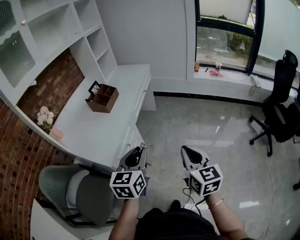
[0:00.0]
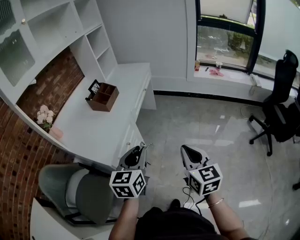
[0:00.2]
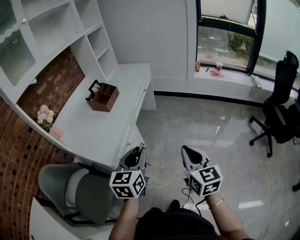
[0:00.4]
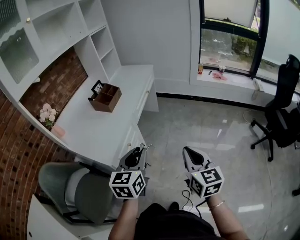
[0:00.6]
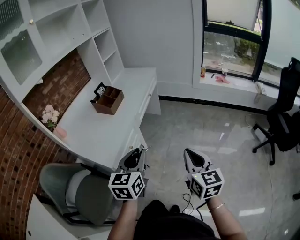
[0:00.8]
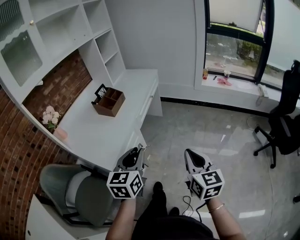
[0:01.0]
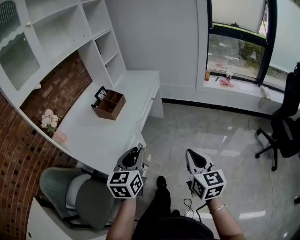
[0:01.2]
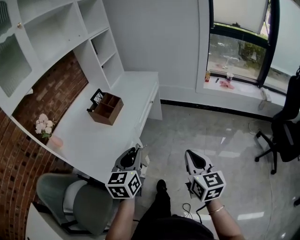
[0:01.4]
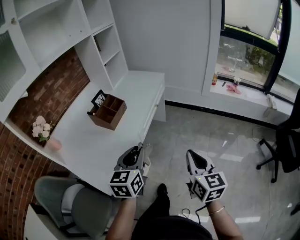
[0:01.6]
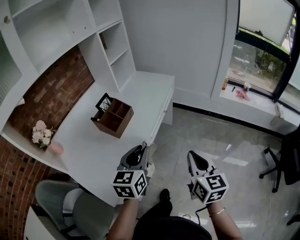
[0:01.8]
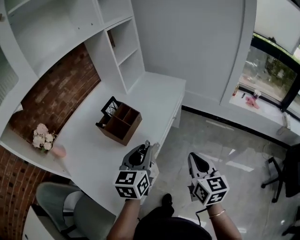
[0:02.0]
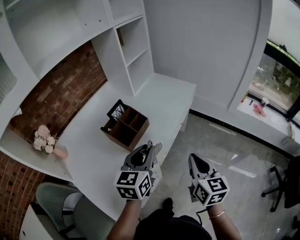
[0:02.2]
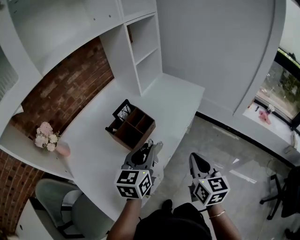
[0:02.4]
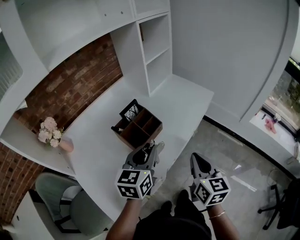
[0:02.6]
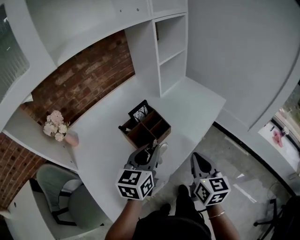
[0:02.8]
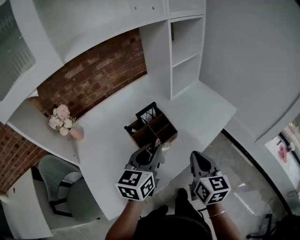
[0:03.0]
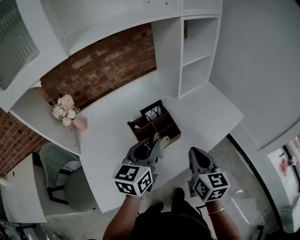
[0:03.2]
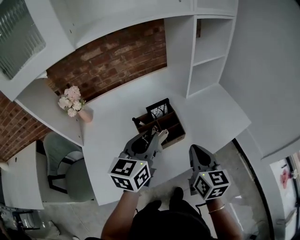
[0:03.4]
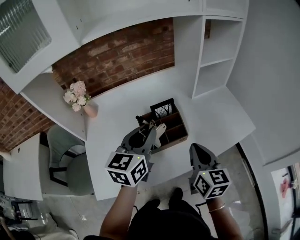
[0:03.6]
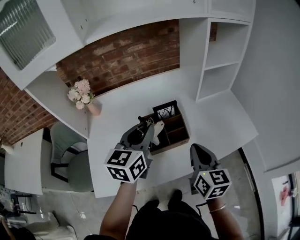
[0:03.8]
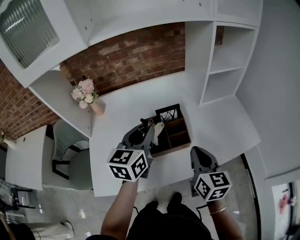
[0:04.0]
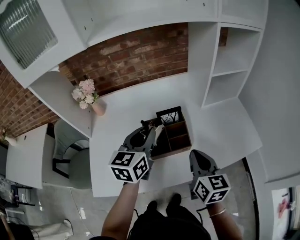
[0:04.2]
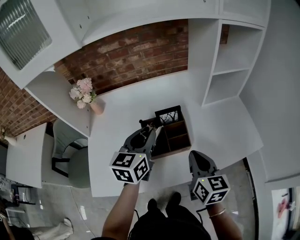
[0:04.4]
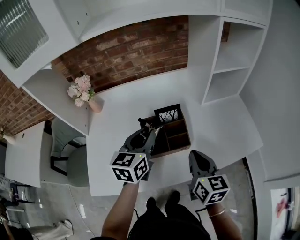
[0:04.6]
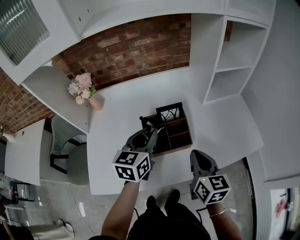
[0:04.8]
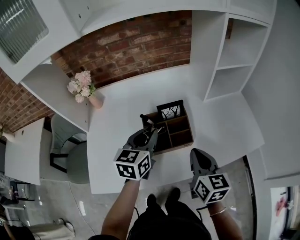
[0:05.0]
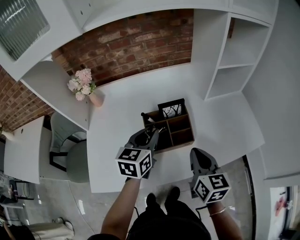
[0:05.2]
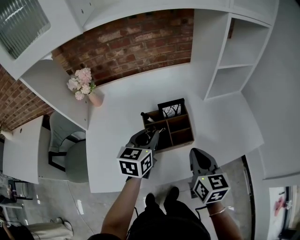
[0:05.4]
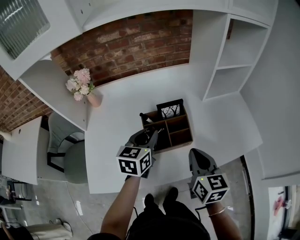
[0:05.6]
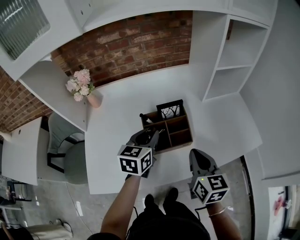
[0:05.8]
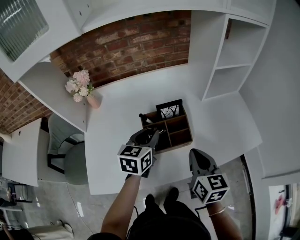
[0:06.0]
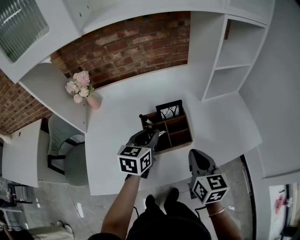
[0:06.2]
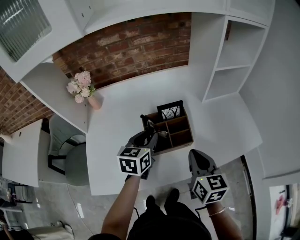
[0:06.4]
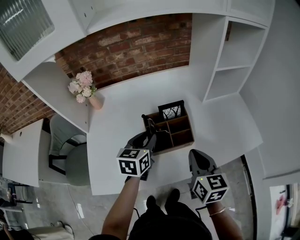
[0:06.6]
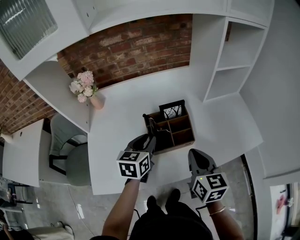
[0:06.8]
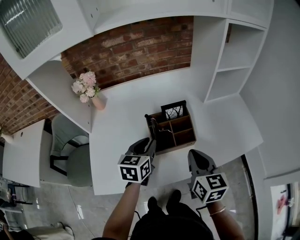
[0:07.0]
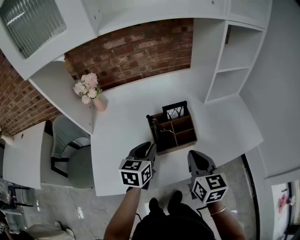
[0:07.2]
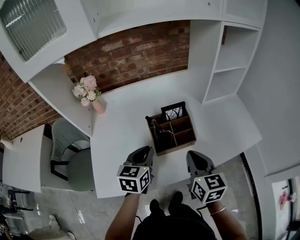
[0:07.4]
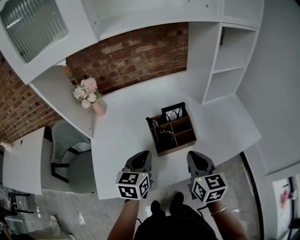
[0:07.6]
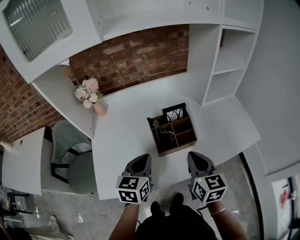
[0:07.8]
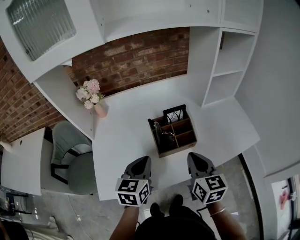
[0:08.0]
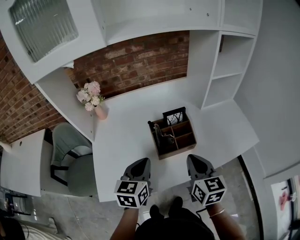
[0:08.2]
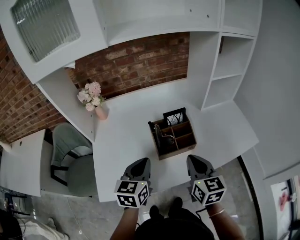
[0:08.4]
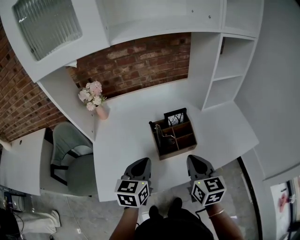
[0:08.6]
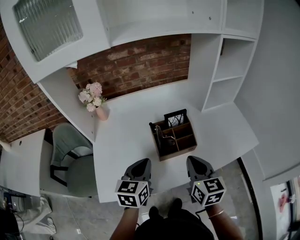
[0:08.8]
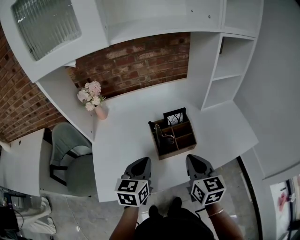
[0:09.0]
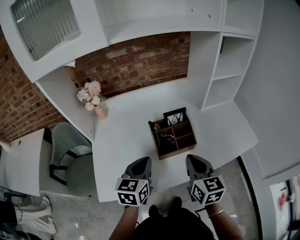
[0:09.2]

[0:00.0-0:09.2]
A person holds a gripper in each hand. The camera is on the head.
0:00.0 to 0:01.6: The two grippers go about 20 cm forward.
0:01.6 to 0:03.0: The left gripper moves roughly 30 cm, and changes its angle by about 20 degrees. Meanwhile the right gripper moves roughly 40 cm, and swivels approximately 30 degrees.
0:03.0 to 0:04.6: The left gripper ends up roughly 10 cm from where it was, and turns by approximately 30 degrees. Meanwhile the right gripper shifts by about 10 cm, and changes its angle by roughly 30 degrees.
0:04.6 to 0:06.2: The left gripper goes roughly 5 cm downward.
0:06.2 to 0:07.6: The left gripper is displaced backward and to the left by approximately 10 cm.
0:07.6 to 0:09.2: The grippers stay close to where they were, moving slightly.

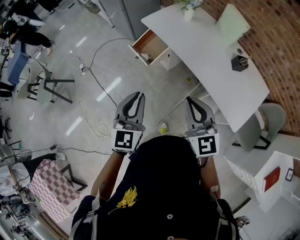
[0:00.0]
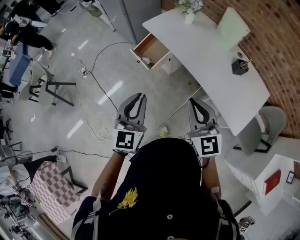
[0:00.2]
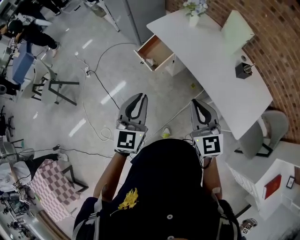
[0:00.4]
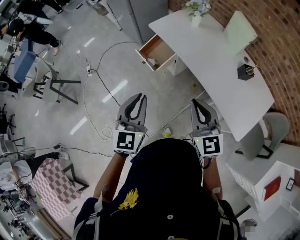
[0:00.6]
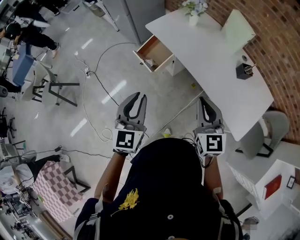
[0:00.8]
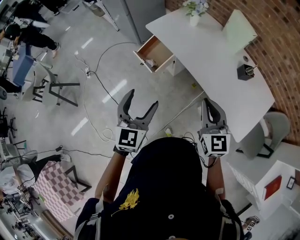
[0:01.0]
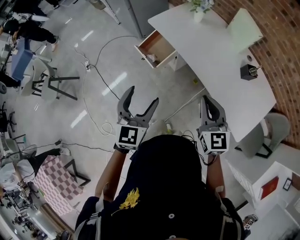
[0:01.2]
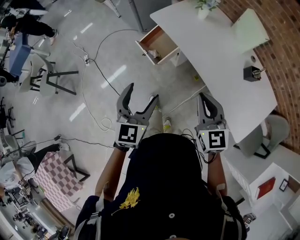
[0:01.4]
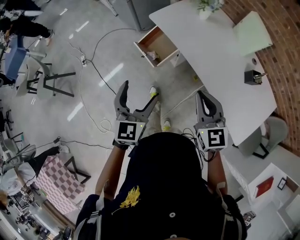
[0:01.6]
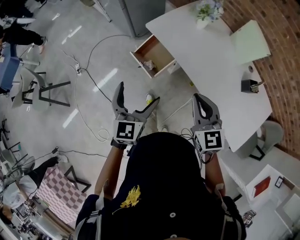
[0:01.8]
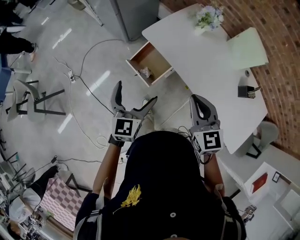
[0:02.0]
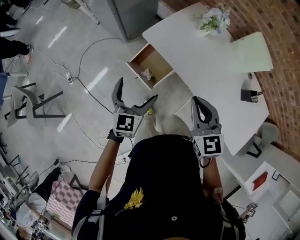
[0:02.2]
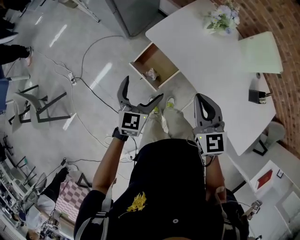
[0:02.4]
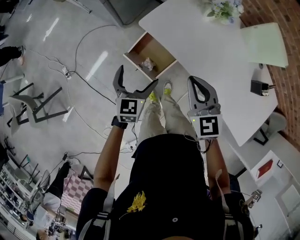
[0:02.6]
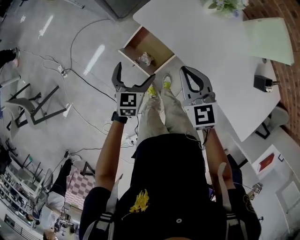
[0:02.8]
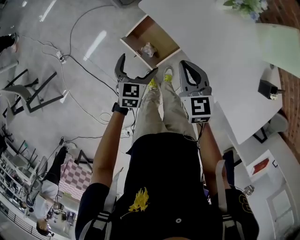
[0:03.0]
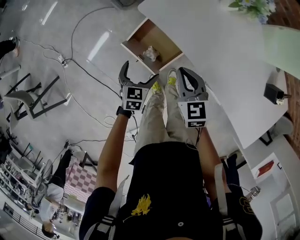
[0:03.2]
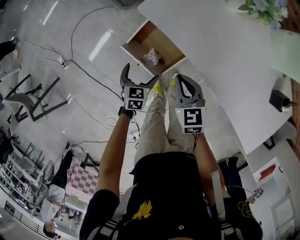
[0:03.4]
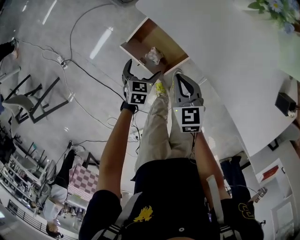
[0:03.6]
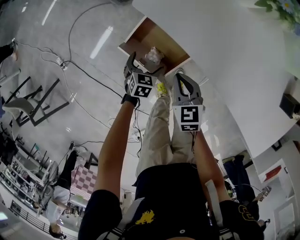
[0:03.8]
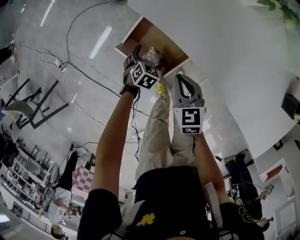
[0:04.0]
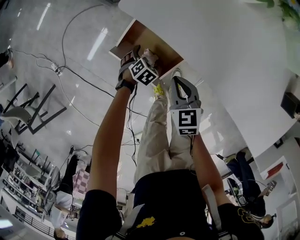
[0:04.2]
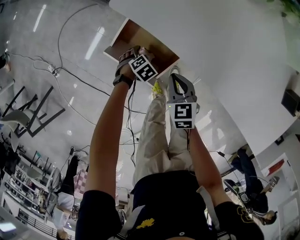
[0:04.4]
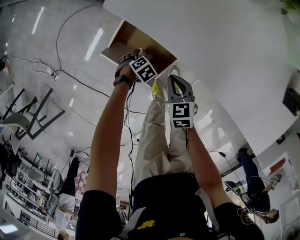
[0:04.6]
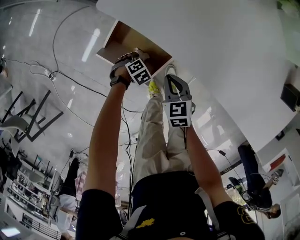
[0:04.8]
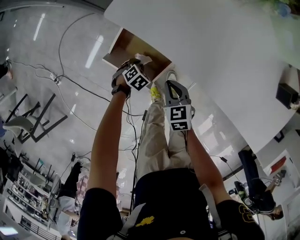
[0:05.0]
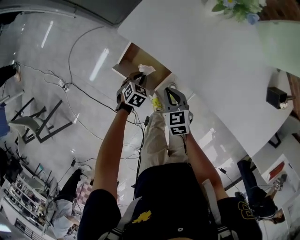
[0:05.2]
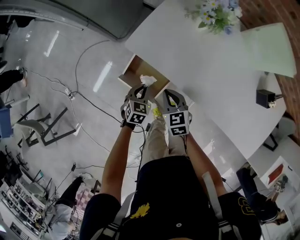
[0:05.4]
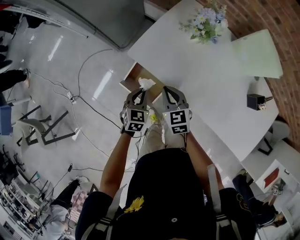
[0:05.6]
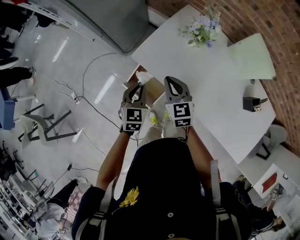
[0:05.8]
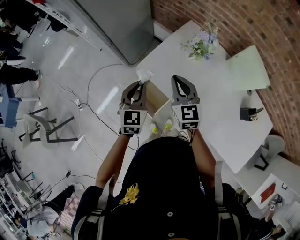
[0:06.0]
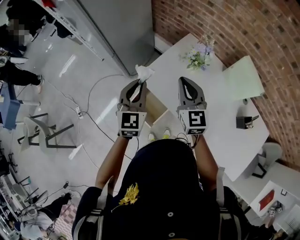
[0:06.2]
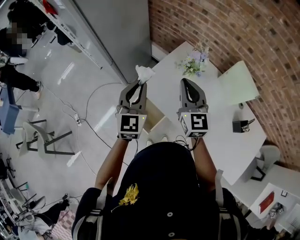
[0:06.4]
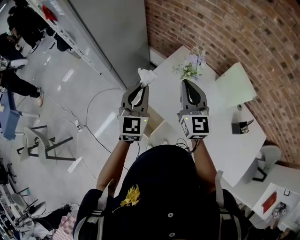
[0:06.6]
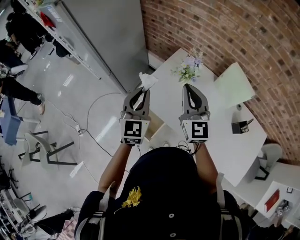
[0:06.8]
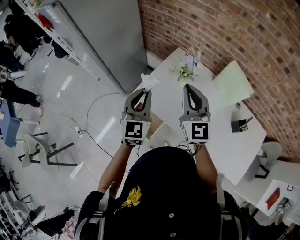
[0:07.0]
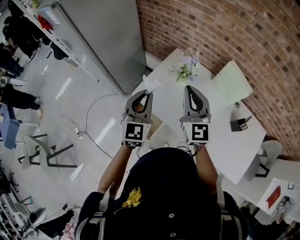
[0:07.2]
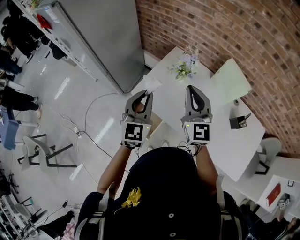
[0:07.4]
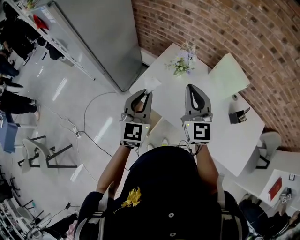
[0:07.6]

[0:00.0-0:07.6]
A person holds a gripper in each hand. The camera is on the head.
0:00.0 to 0:01.6: The grippers both shift forward by approximately 15 cm. The left gripper opens.
0:01.6 to 0:03.0: Both grippers move forward and downward, approximately 40 cm. The left gripper changes its angle by roughly 30 degrees.
0:03.0 to 0:04.6: Both grippers travel together downward, about 35 cm. The right gripper swivels some 20 degrees. Meanwhile the left gripper tilts its fingers about 40 degrees downward.
0:04.6 to 0:06.0: Both grippers move upward, roughly 60 cm. The left gripper angles its fingers upward, by about 60 degrees, and closes. The right gripper tilts its fingers some 40 degrees upward.
0:06.0 to 0:07.6: The grippers both shift upward and to the right by about 15 cm. The right gripper changes its angle by roughly 20 degrees.

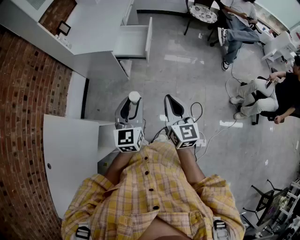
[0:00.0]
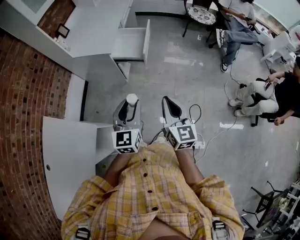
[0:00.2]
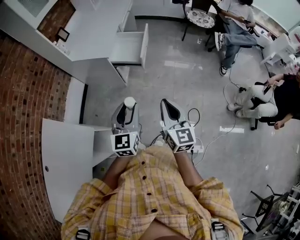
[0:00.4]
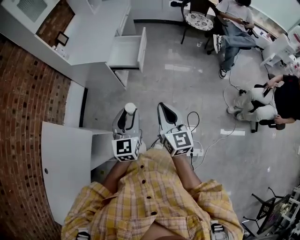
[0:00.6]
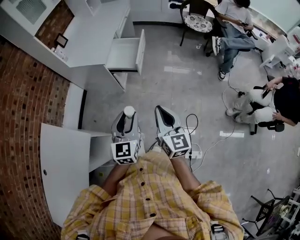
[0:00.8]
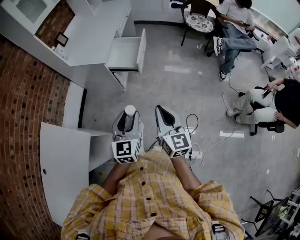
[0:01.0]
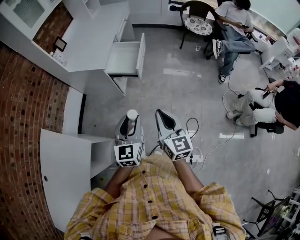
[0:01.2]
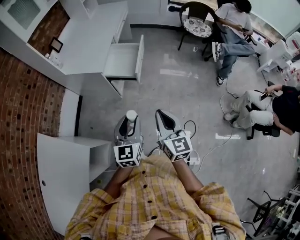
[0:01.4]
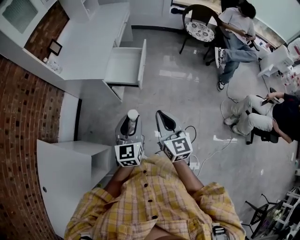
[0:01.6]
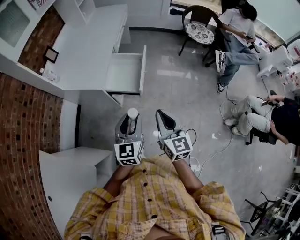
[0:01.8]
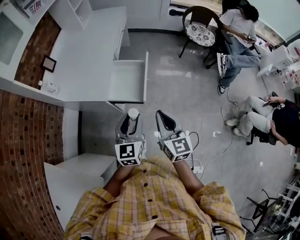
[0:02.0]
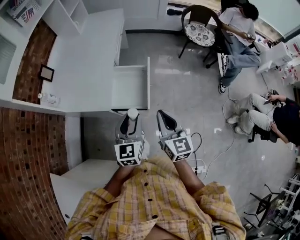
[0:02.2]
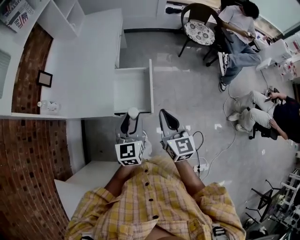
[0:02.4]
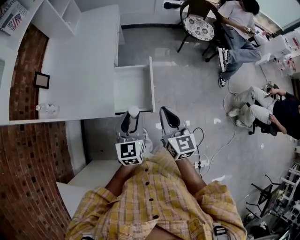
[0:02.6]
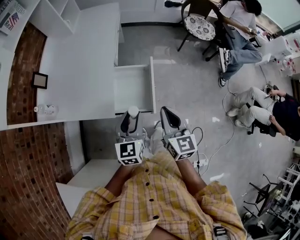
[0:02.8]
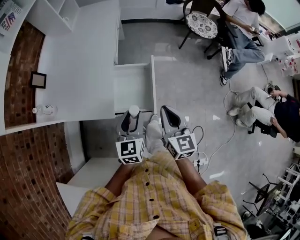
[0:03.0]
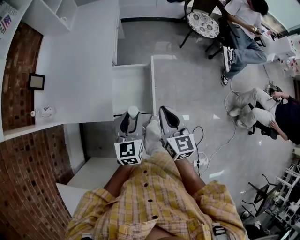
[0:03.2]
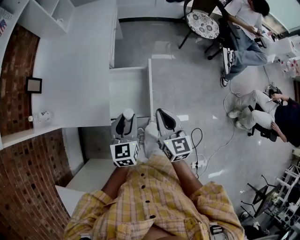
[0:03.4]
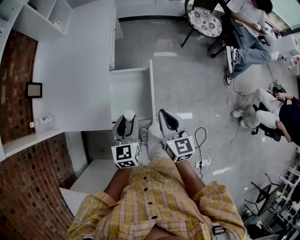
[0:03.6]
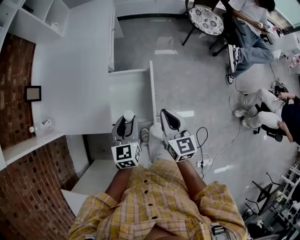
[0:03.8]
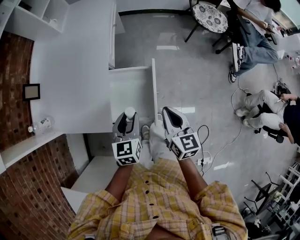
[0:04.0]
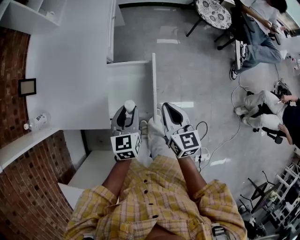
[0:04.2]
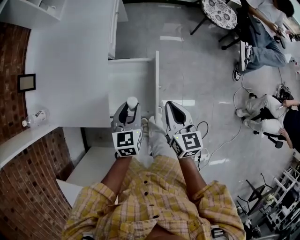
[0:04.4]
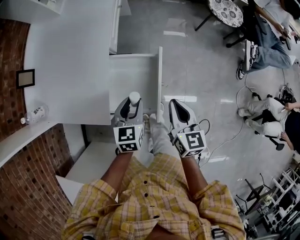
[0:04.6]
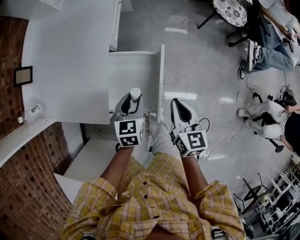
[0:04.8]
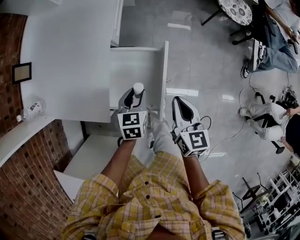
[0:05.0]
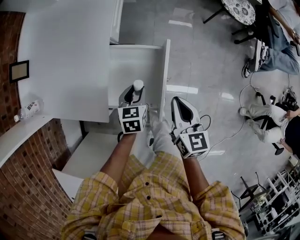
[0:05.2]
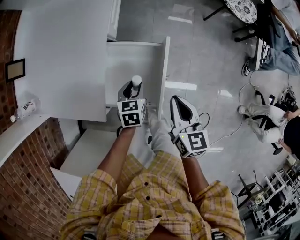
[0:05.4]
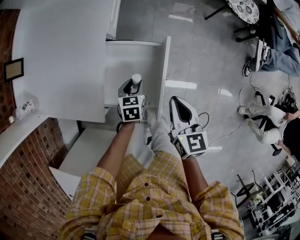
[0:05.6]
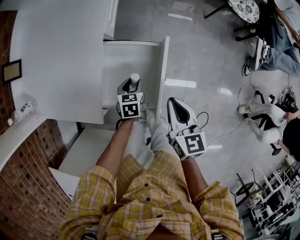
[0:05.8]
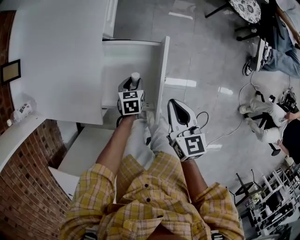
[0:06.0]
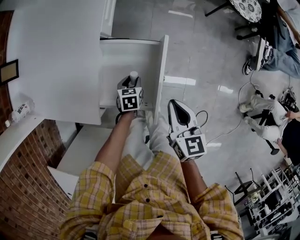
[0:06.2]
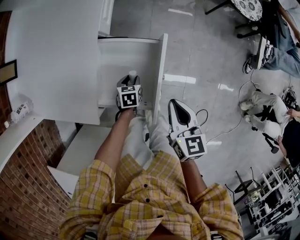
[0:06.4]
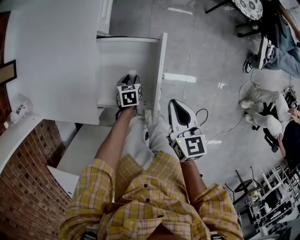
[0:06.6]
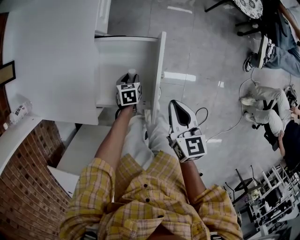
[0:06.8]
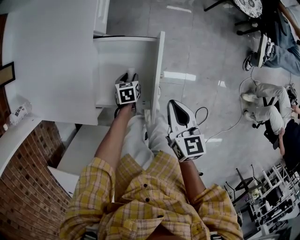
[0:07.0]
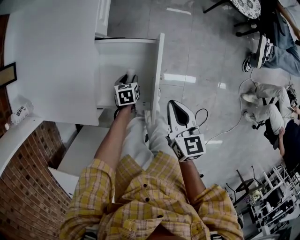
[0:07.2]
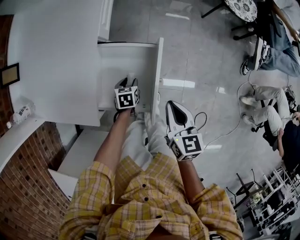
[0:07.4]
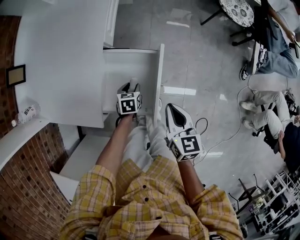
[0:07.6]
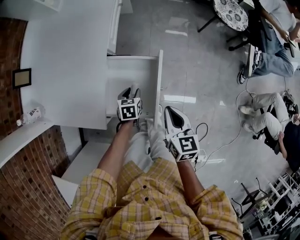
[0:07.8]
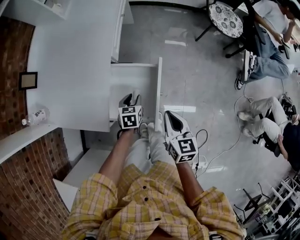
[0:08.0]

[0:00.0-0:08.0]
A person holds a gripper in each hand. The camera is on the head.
0:00.0 to 0:01.6: The grippers both shift forward by about 15 cm.
0:01.6 to 0:03.2: Both grippers move forward, some 35 cm.
0:03.2 to 0:04.8: Both grippers move downward and forward, roughly 20 cm.
0:04.8 to 0:06.4: The right gripper goes roughly 5 cm downward. The left gripper goes roughly 25 cm downward, and turns by some 20 degrees.
0:06.4 to 0:08.0: The left gripper is displaced upward by roughly 15 cm, while the right gripper moves approximately 5 cm.
